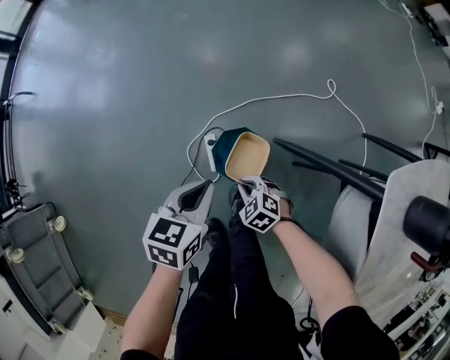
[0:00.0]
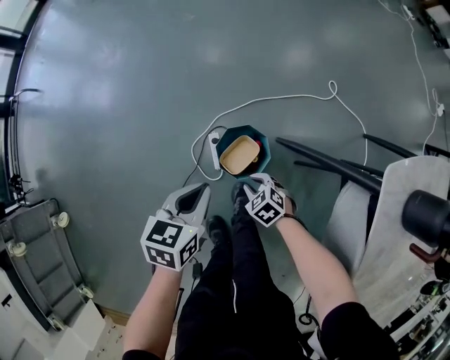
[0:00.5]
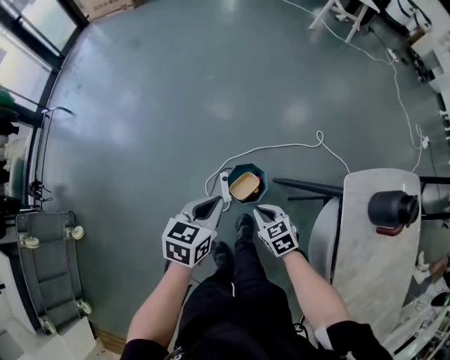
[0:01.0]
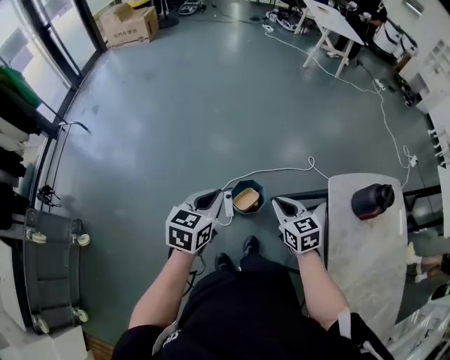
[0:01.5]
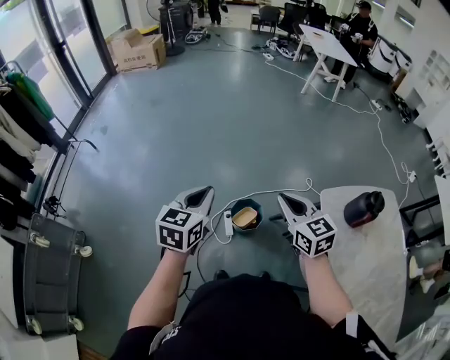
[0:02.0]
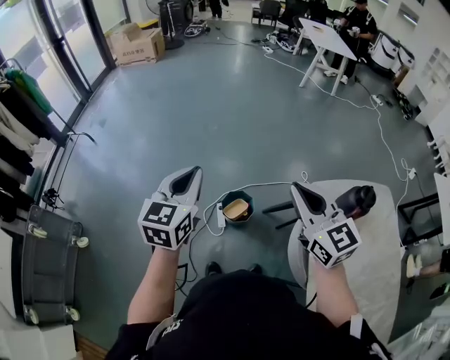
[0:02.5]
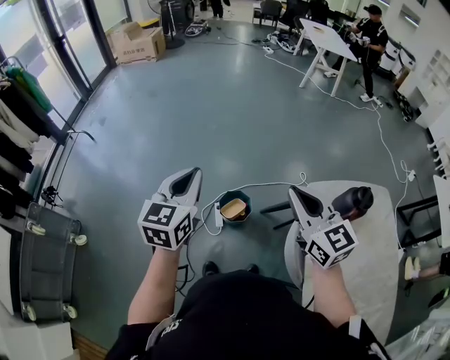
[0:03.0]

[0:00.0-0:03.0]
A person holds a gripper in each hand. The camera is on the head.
0:00.0 to 0:01.5: The grippers both shift upward by some 40 cm. The right gripper points its fingers about 30 degrees further upward.
0:01.5 to 0:03.0: The right gripper shifts approximately 25 cm upward, and turns by approximately 30 degrees; the left gripper travels upward by approximately 15 cm, and swivels some 20 degrees.

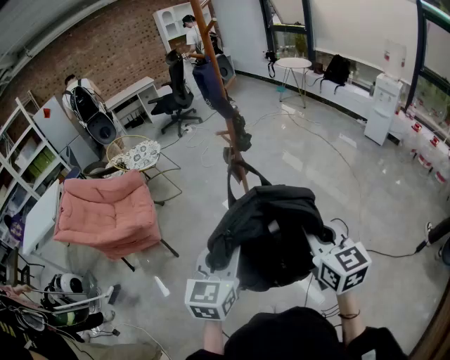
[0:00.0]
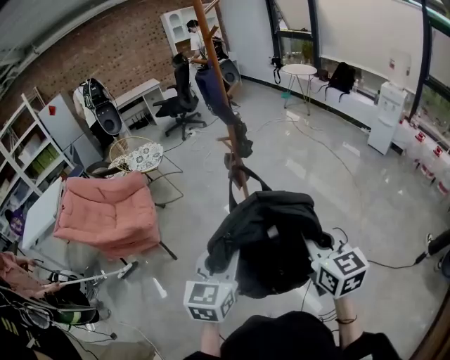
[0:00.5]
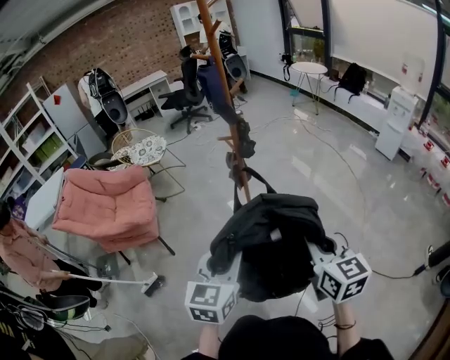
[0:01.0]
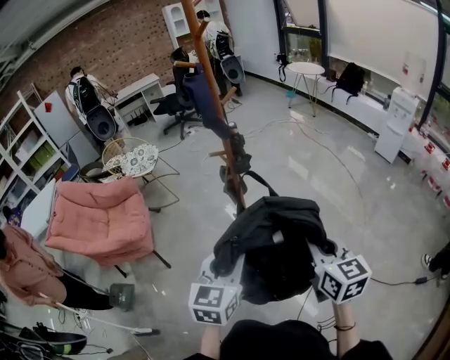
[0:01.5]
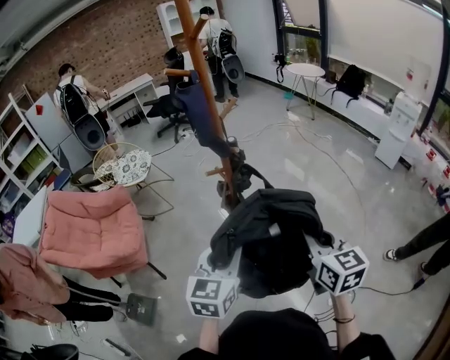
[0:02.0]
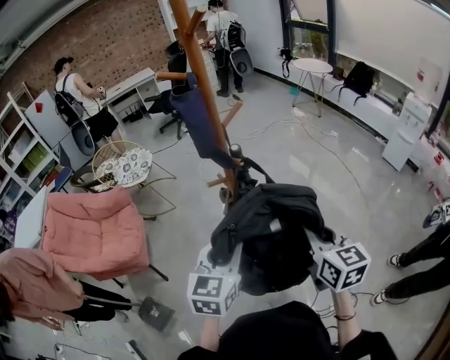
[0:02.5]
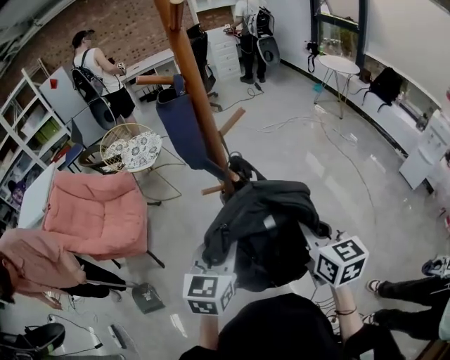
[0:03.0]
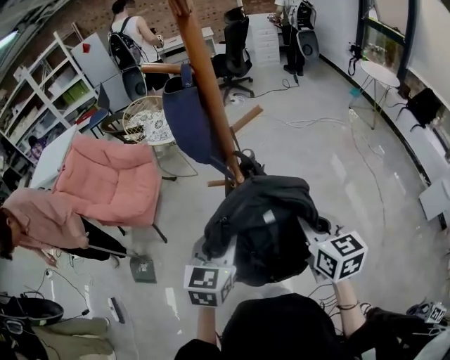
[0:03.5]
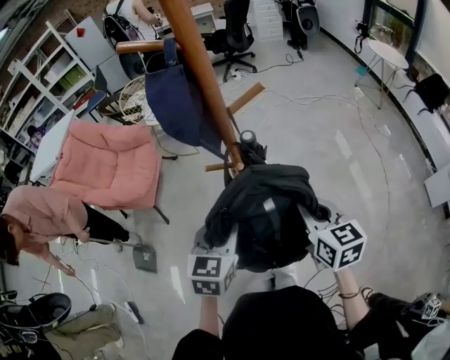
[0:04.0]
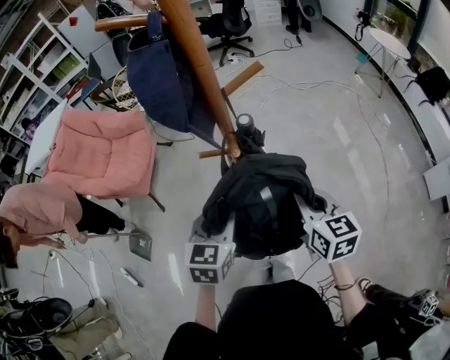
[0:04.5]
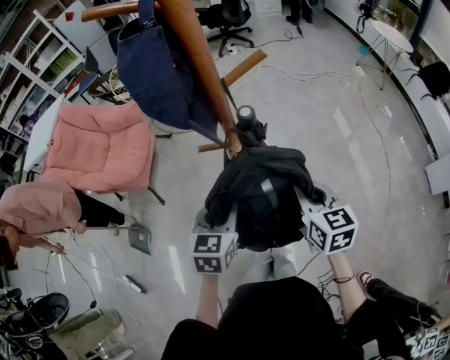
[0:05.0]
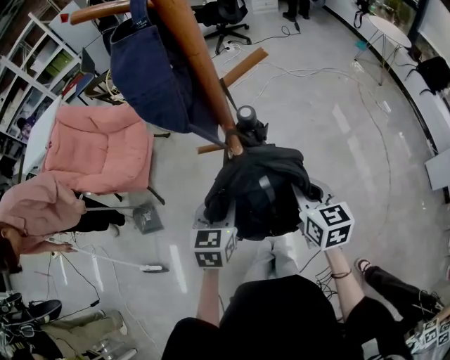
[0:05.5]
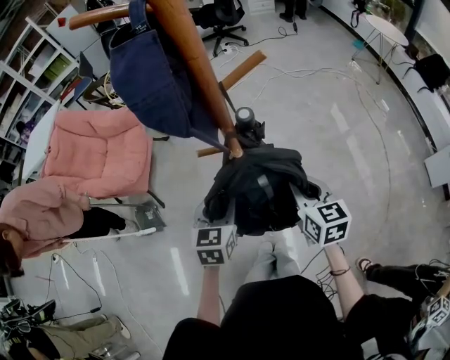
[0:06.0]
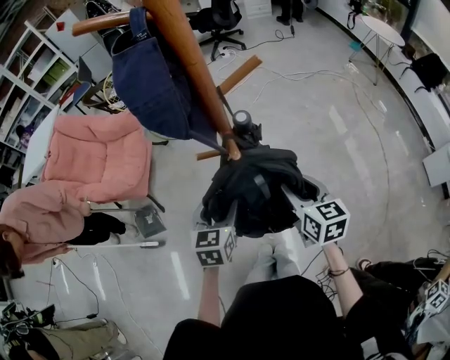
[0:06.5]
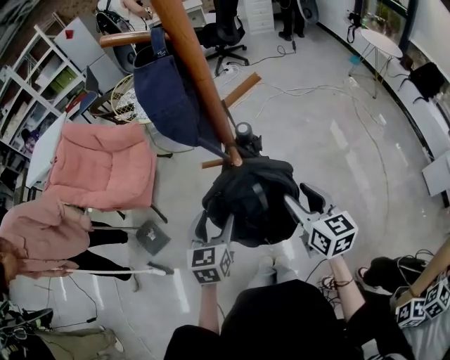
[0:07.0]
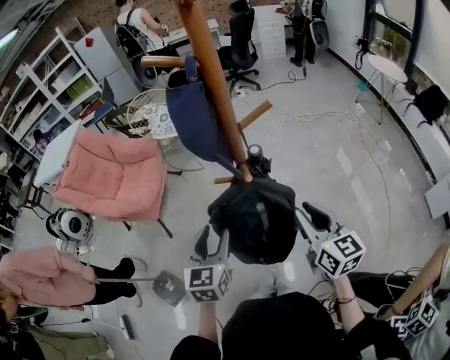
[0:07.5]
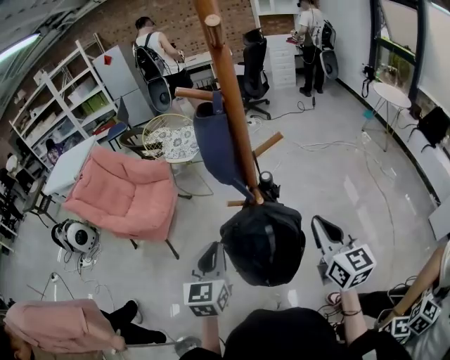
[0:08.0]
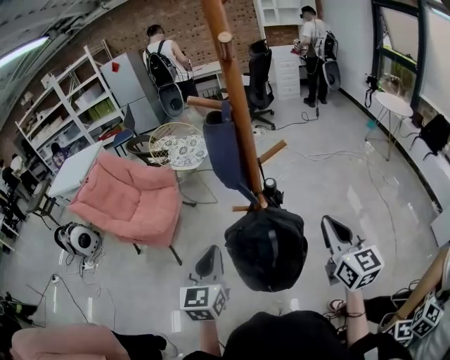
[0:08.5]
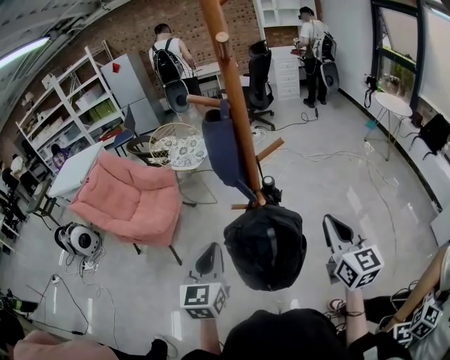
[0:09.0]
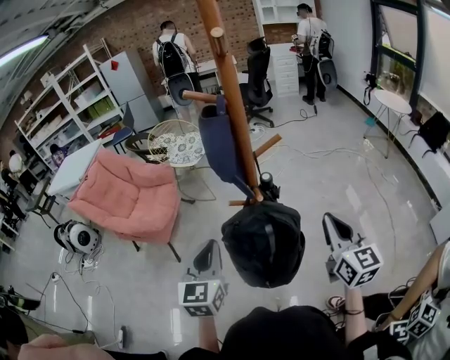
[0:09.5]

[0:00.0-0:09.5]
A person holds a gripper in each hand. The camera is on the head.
0:00.0 to 0:02.0: Both grippers move forward, about 30 cm.
0:02.0 to 0:04.0: The left gripper changes place by approximately 20 cm, and turns by approximately 30 degrees, while the right gripper changes place by approximately 30 cm, and rotates approximately 30 degrees.
0:04.0 to 0:05.5: The grippers both shift downward by about 5 cm.
0:05.5 to 0:07.5: The left gripper travels upward and to the left by about 10 cm. Meanwhile the right gripper moves upward, roughly 10 cm, and opens up.
0:07.5 to 0:09.5: Both grippers move upward, about 10 cm. The right gripper closes, while the left gripper closes up.

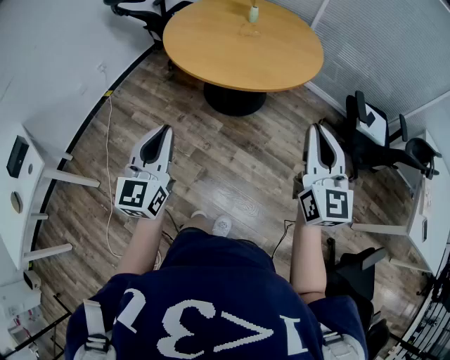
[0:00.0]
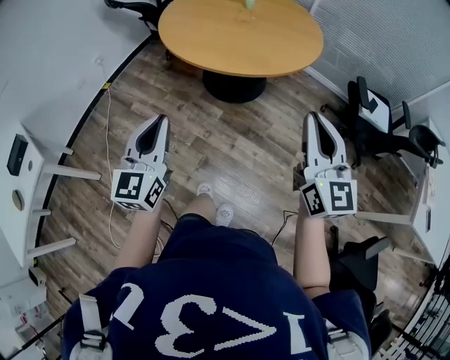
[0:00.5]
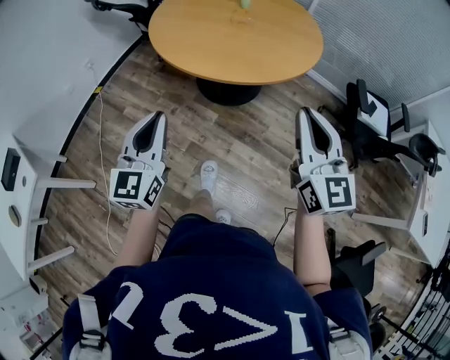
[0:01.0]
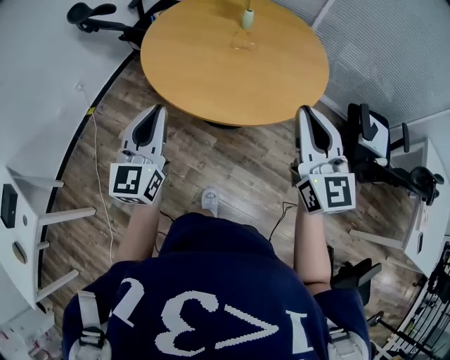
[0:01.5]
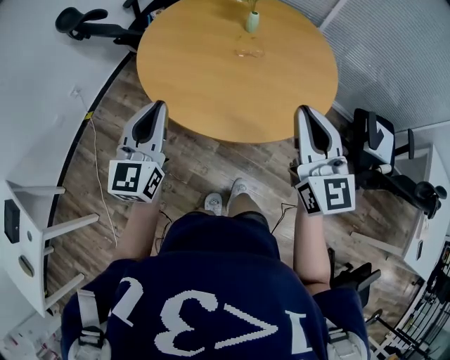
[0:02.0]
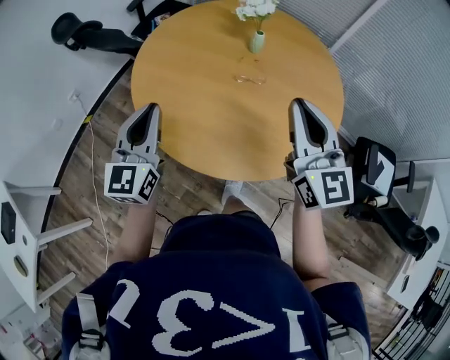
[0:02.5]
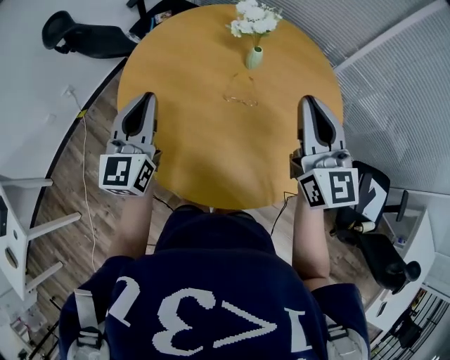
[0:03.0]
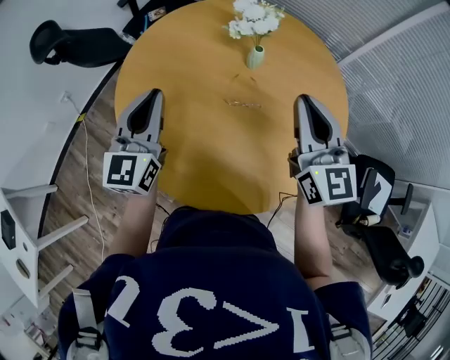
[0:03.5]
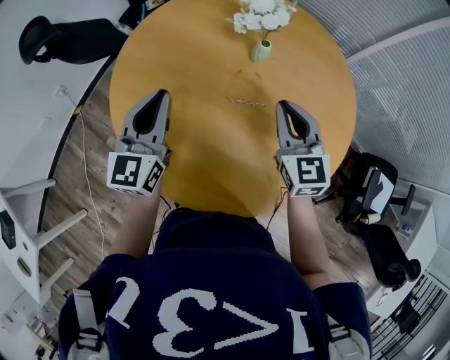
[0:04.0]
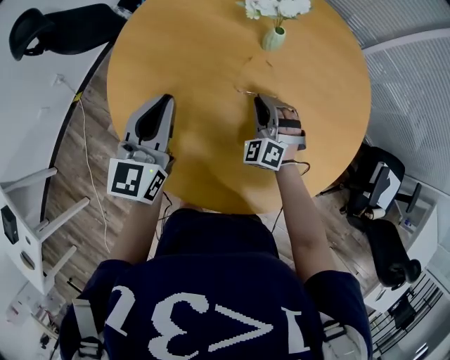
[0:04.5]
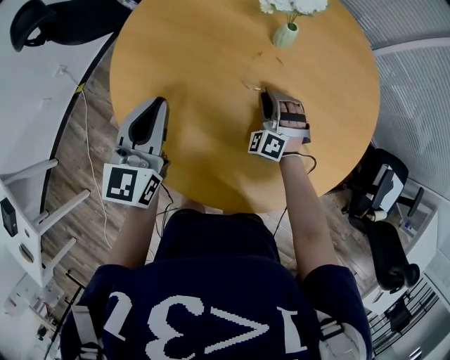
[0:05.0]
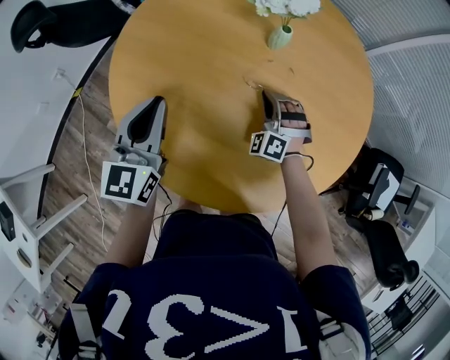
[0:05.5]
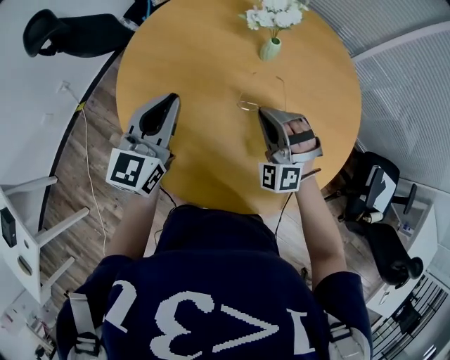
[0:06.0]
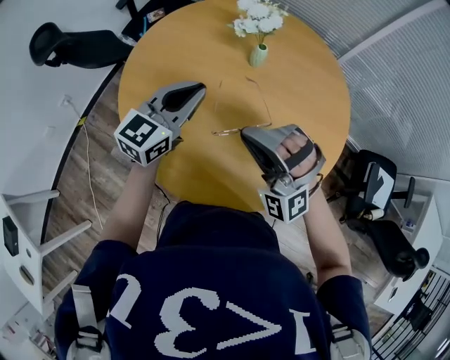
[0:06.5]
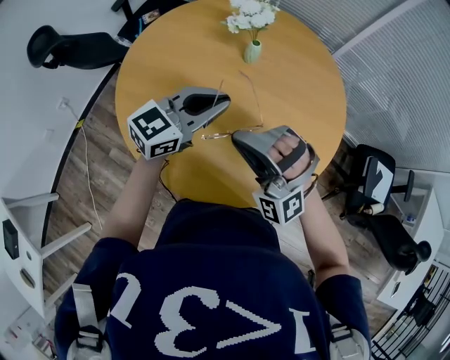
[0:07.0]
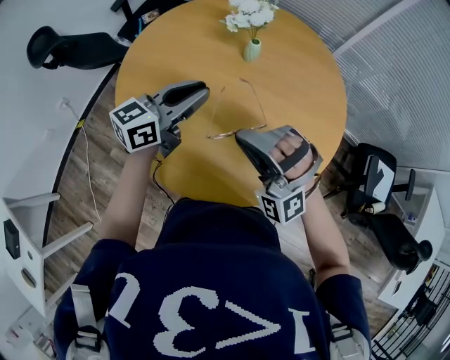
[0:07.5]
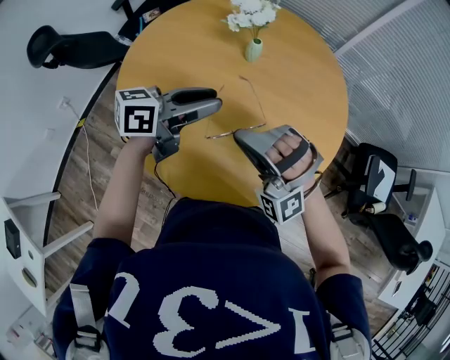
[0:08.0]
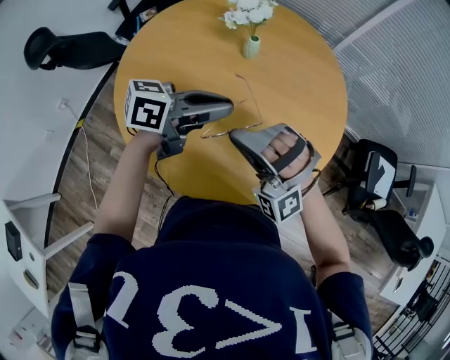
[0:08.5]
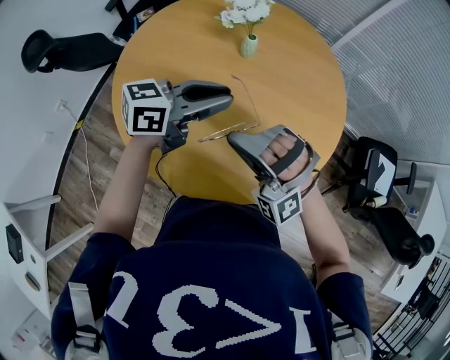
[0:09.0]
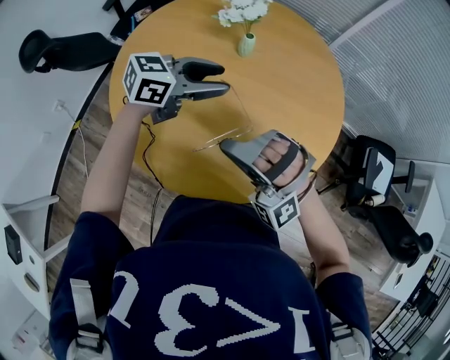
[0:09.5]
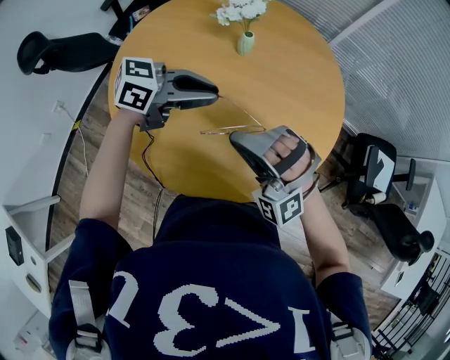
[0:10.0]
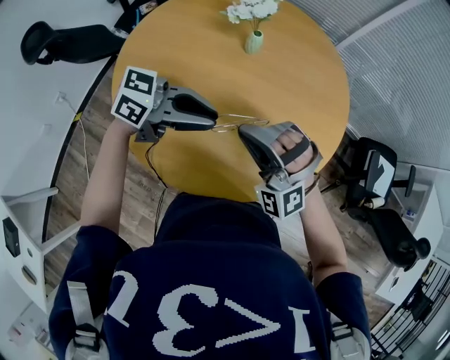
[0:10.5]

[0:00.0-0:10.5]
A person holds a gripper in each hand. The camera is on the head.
0:00.0 to 0:02.0: The grippers both shift forward by approximately 35 cm.
0:02.0 to 0:04.0: Both grippers move forward, about 35 cm. The right gripper swivels roughly 20 degrees.
0:04.0 to 0:06.5: The right gripper heads backward and to the left, covering approximately 15 cm, travels downward and back again, some 20 cm each way, rolls counterclockwise, seen from behind, by roughly 70 degrees, and opens, then closes again. The left gripper is displaced to the right by some 5 cm, and turns by about 30 degrees.
0:06.5 to 0:08.5: The left gripper moves left and right over about 10 cm, changing direction 2 times, rotates about 50 degrees, and opens, then closes again.
0:08.5 to 0:10.5: The left gripper moves approximately 5 cm, swivels roughly 30 degrees, and opens, then closes again.

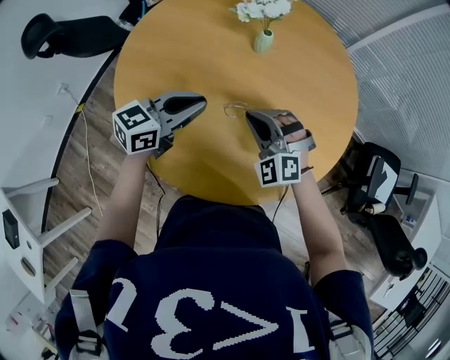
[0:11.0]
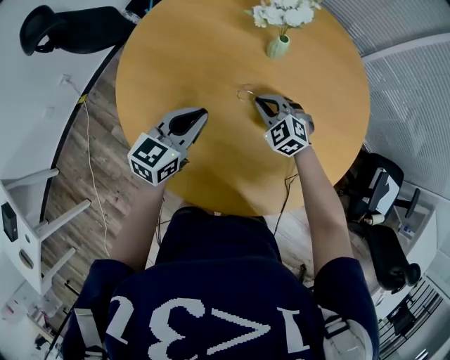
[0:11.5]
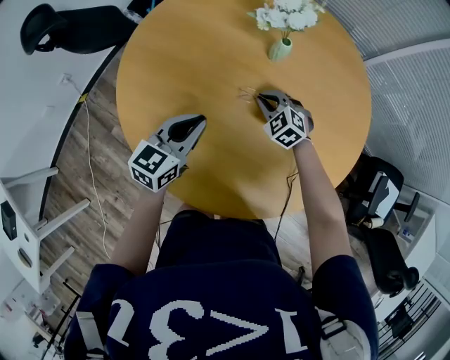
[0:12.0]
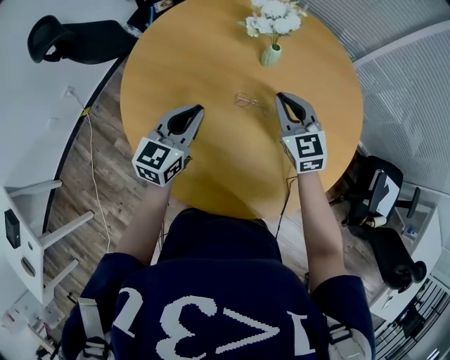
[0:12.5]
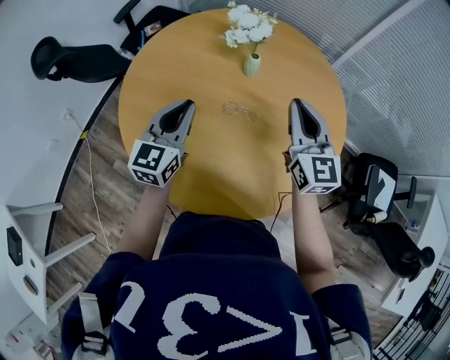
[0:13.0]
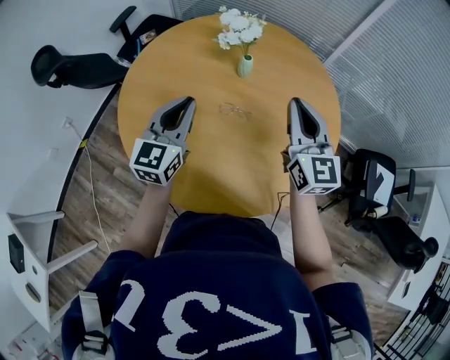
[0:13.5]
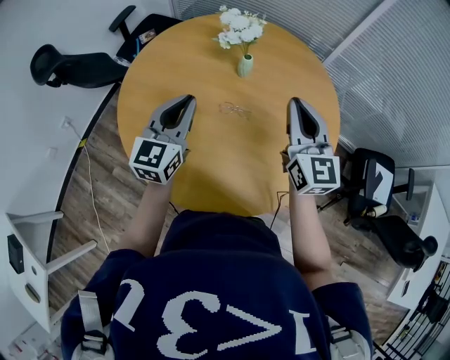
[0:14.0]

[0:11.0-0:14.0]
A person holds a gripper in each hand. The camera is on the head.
0:11.0 to 0:12.5: The right gripper goes roughly 10 cm forward, moves about 15 cm downward and comes back, and rotates around the line of its fingers by approximately 40 degrees, clockwise from behind. Meanwhile the left gripper swivels about 30 degrees.
0:12.5 to 0:14.0: The right gripper shifts some 20 cm upward, backward and to the right, and rotates roughly 30 degrees, while the left gripper moves upward, approximately 10 cm.
